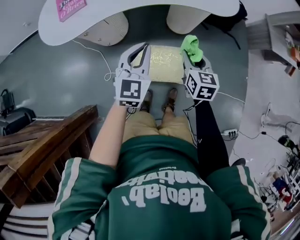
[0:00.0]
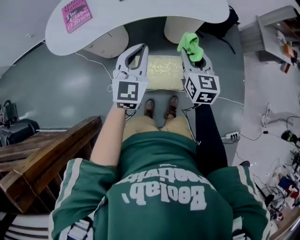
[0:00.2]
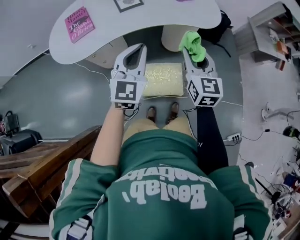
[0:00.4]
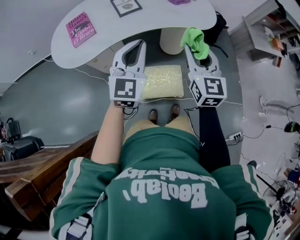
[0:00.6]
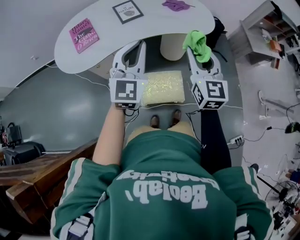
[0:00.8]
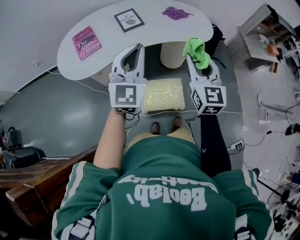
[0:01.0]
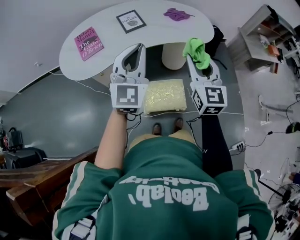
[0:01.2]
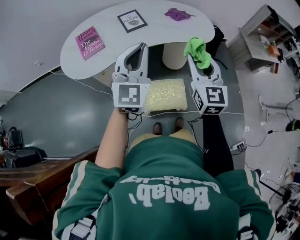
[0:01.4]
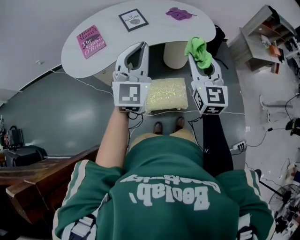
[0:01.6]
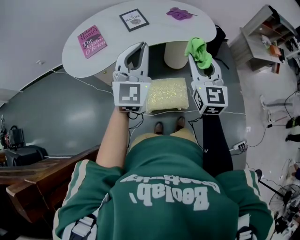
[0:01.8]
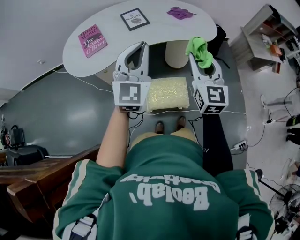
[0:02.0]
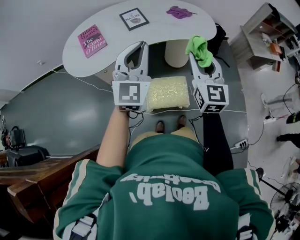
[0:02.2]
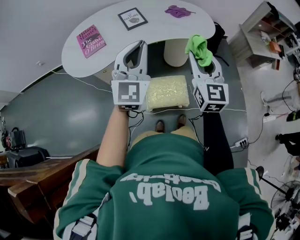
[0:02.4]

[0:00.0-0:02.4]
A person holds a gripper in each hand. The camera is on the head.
0:00.0 to 0:01.2: Both grippers move upward, about 25 cm. The right gripper changes its angle by approximately 30 degrees; the left gripper swivels roughly 20 degrees.
0:01.2 to 0:02.4: The grippers stay close to where they were, moving slightly.

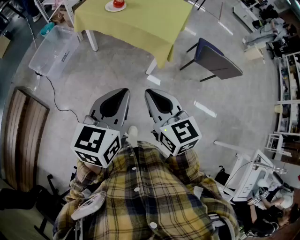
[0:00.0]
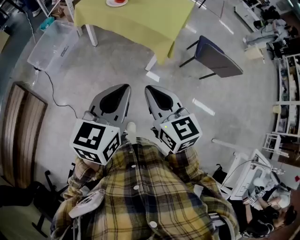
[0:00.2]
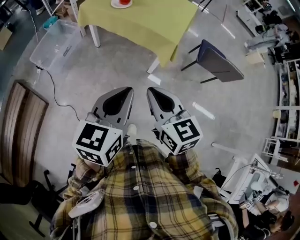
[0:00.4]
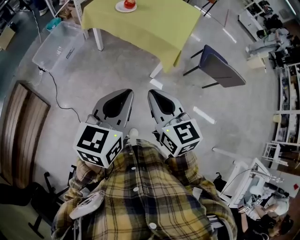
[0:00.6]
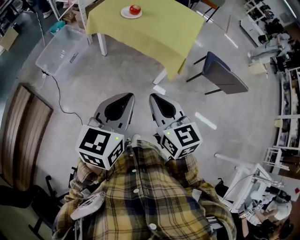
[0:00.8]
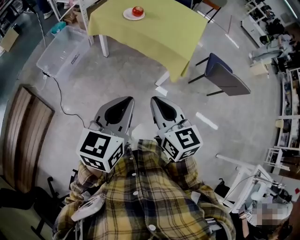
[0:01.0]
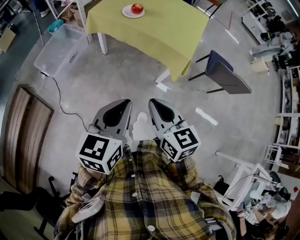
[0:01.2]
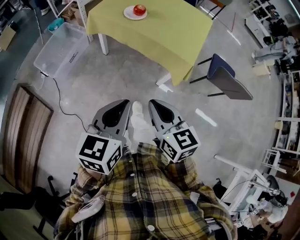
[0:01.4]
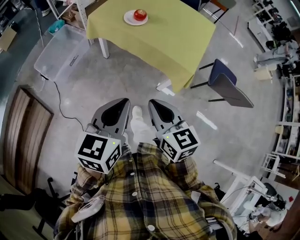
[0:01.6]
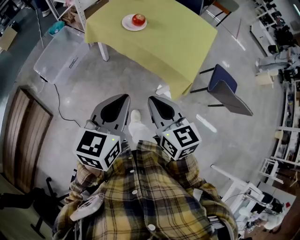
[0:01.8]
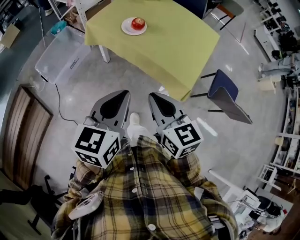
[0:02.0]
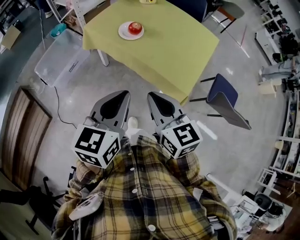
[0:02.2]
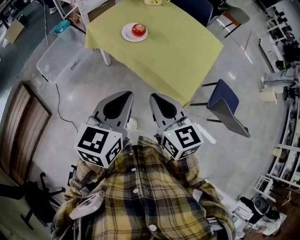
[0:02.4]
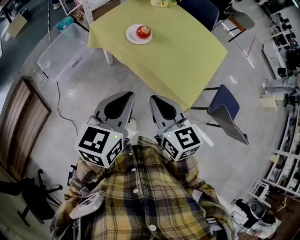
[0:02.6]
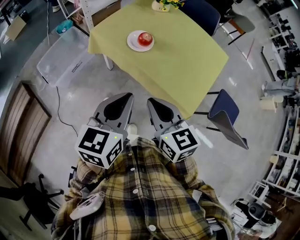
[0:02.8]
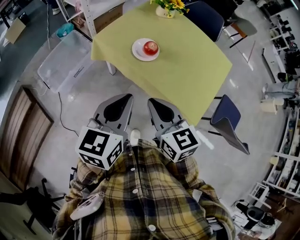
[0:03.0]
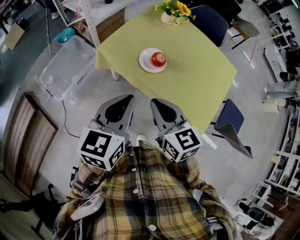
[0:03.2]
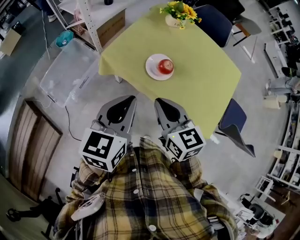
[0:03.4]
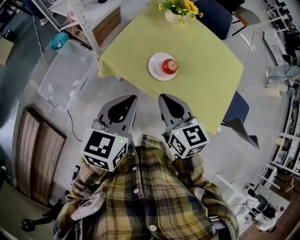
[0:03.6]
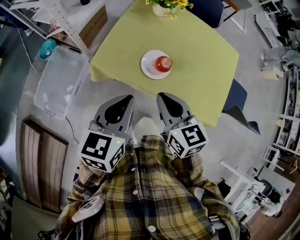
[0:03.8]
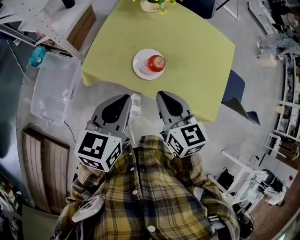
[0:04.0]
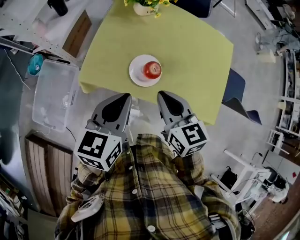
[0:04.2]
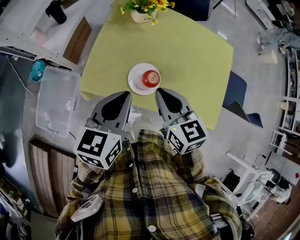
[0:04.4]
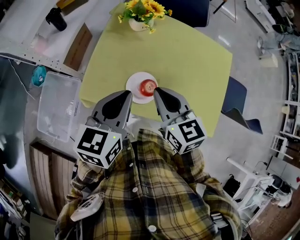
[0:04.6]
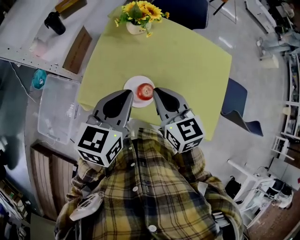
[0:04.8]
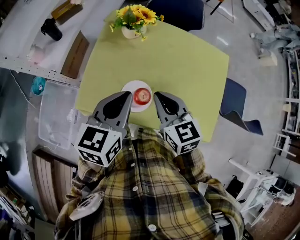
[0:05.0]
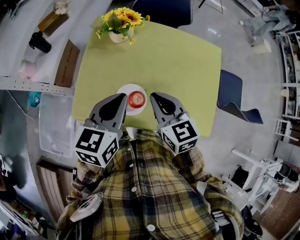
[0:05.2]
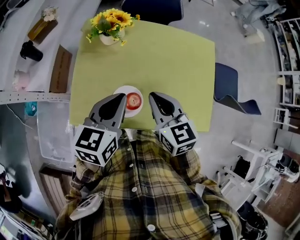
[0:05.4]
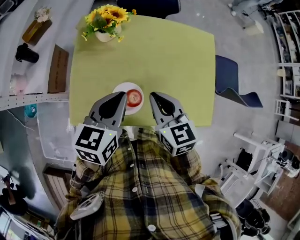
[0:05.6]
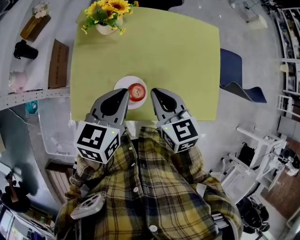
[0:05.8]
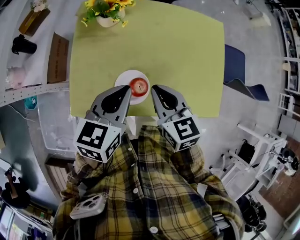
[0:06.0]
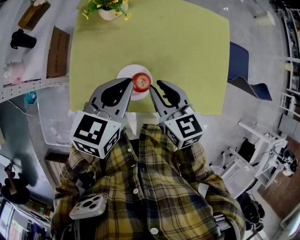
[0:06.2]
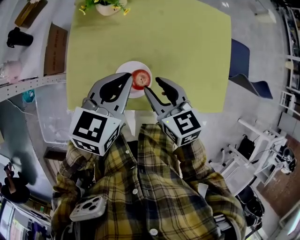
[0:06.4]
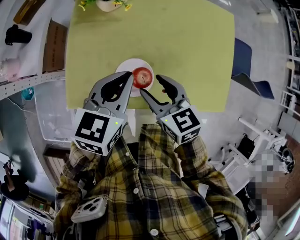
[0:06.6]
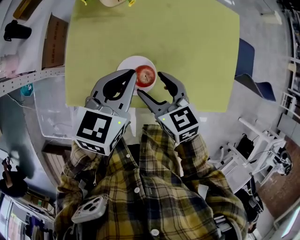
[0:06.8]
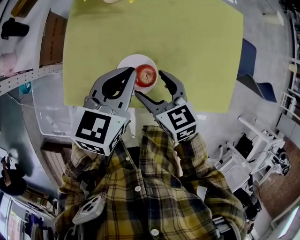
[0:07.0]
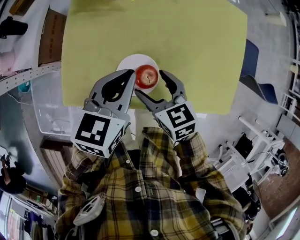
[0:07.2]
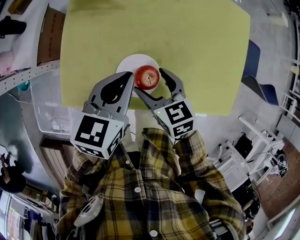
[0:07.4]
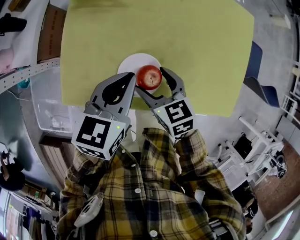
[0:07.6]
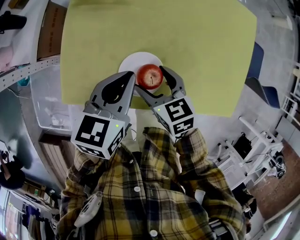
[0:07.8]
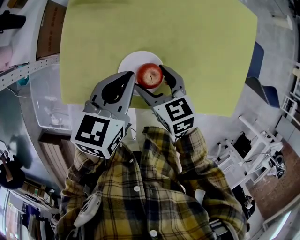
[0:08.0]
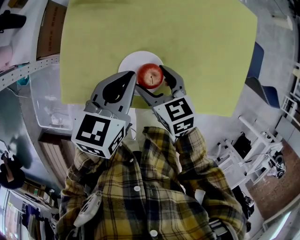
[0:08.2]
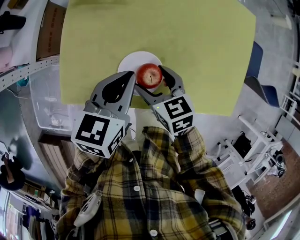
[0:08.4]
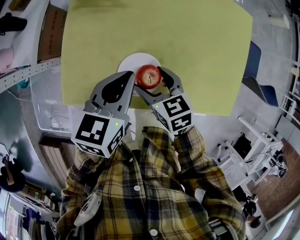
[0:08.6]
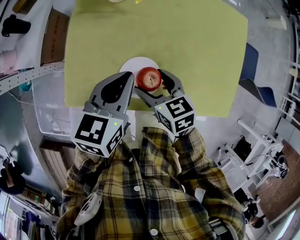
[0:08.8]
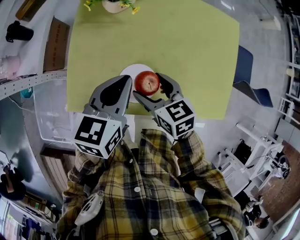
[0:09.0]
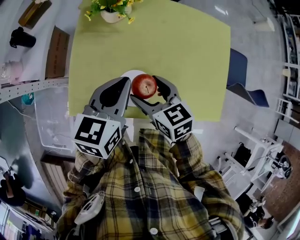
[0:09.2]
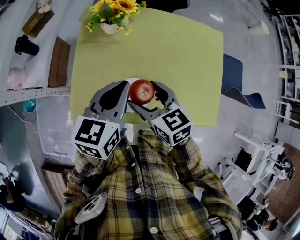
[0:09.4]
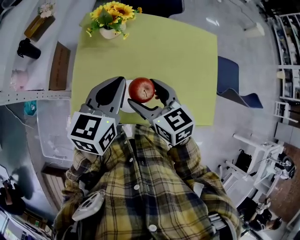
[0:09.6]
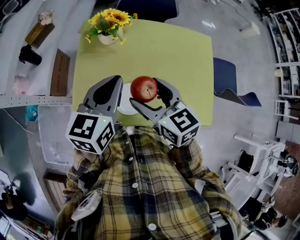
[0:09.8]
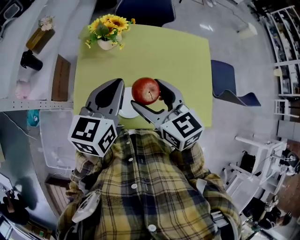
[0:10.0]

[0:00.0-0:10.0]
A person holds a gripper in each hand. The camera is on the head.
0:00.0 to 0:01.4: The left gripper travels forward and to the left by roughly 15 cm. Meanwhile the right gripper moves forward, to the left and downward, approximately 15 cm.
0:01.4 to 0:02.8: The grippers both shift forward by roughly 25 cm.
0:02.8 to 0:04.2: The right gripper moves forward, roughly 25 cm, and swivels approximately 30 degrees. Meanwhile the left gripper moves forward and to the left, approximately 30 cm, and swivels roughly 20 degrees.
0:04.2 to 0:05.8: The right gripper is displaced forward by roughly 10 cm. Meanwhile the left gripper heads forward and to the right, covering approximately 15 cm.
0:05.8 to 0:07.2: The left gripper heads downward, covering roughly 10 cm, while the right gripper is displaced downward by about 15 cm, and opens its fingers.
0:07.2 to 0:08.6: The grippers stay close to where they were, moving slightly.
0:08.6 to 0:10.0: Both grippers move upward, some 20 cm. The right gripper swivels roughly 30 degrees.

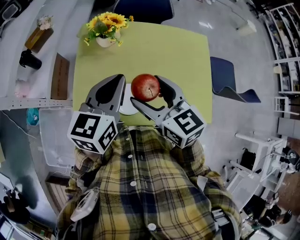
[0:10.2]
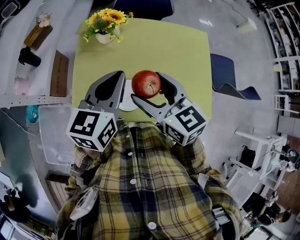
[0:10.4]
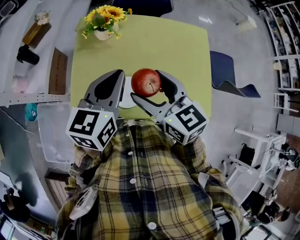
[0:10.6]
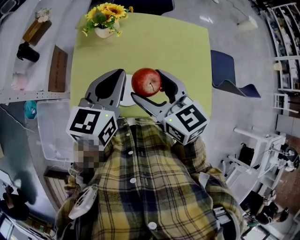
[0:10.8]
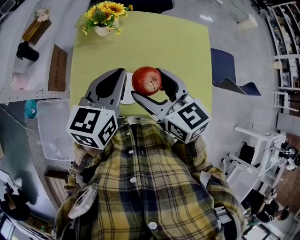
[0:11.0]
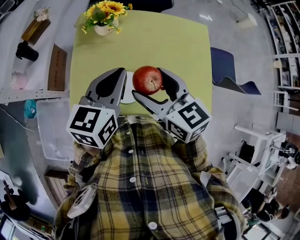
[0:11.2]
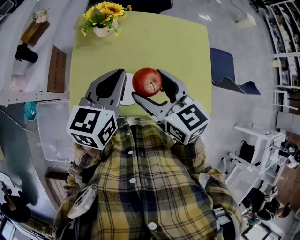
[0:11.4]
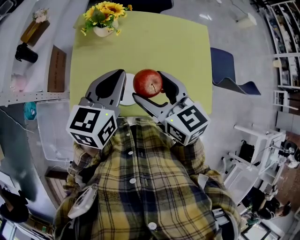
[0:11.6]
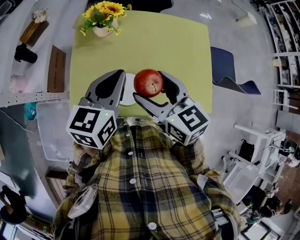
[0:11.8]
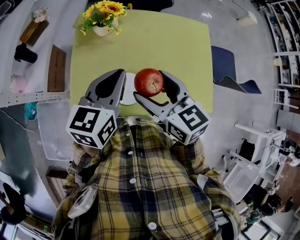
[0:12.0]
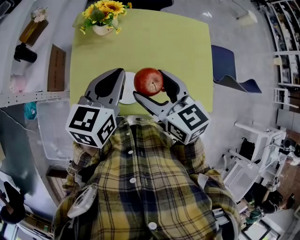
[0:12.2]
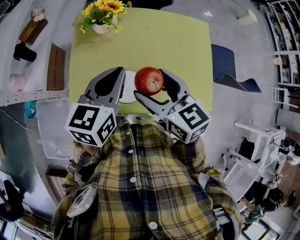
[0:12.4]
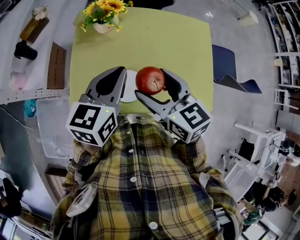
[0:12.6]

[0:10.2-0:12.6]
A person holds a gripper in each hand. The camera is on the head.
0:10.2 to 0:11.4: There are only small adjustments of the grippers.
0:11.4 to 0:12.6: The two grippers keep their place.

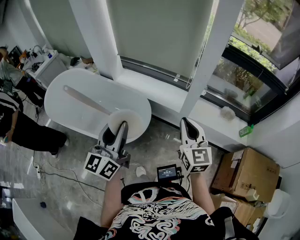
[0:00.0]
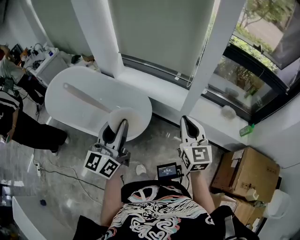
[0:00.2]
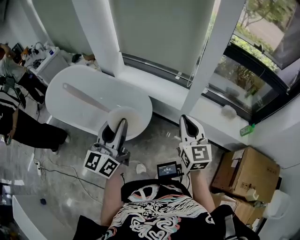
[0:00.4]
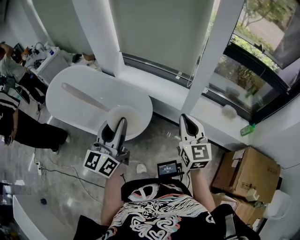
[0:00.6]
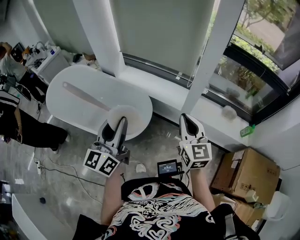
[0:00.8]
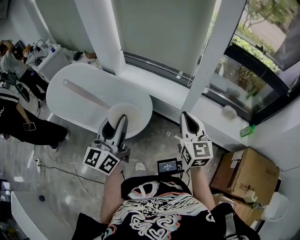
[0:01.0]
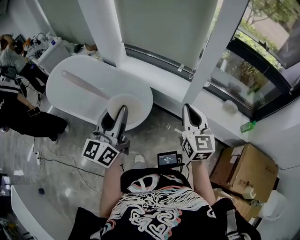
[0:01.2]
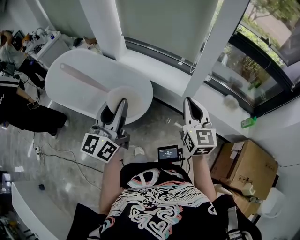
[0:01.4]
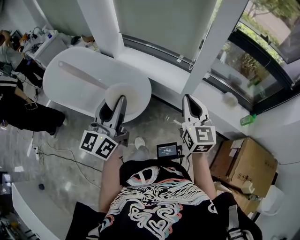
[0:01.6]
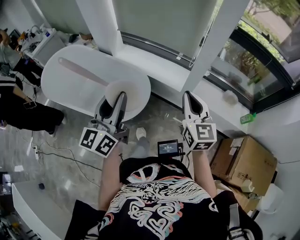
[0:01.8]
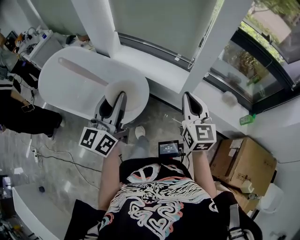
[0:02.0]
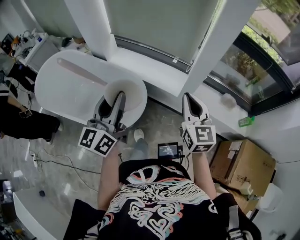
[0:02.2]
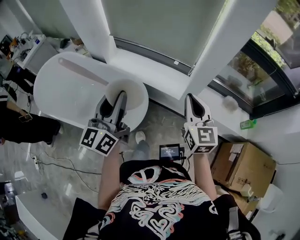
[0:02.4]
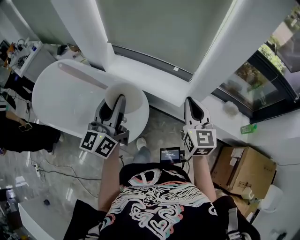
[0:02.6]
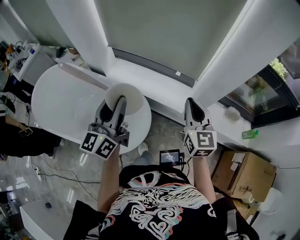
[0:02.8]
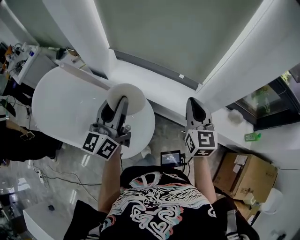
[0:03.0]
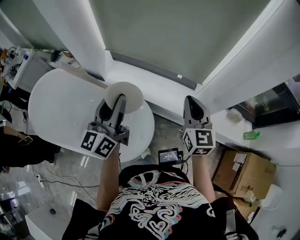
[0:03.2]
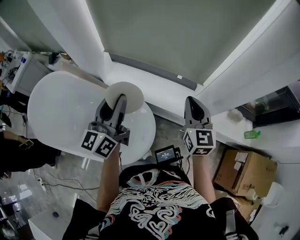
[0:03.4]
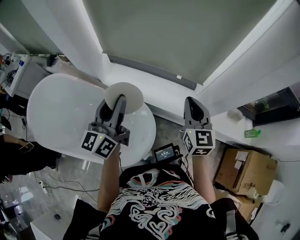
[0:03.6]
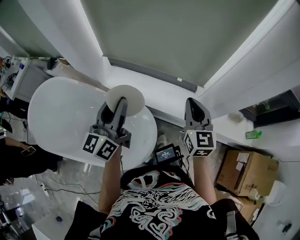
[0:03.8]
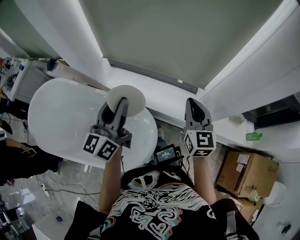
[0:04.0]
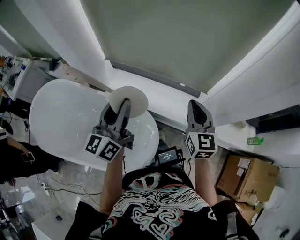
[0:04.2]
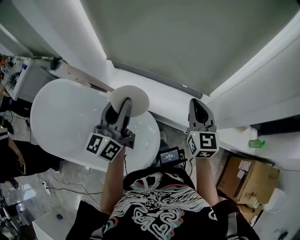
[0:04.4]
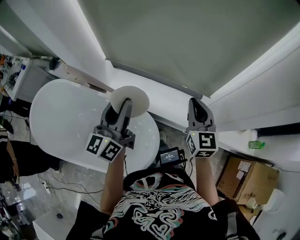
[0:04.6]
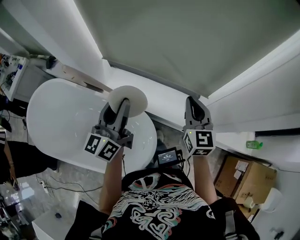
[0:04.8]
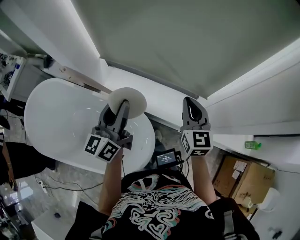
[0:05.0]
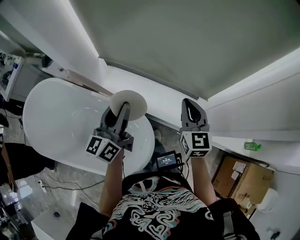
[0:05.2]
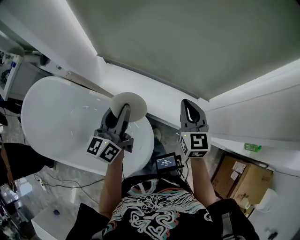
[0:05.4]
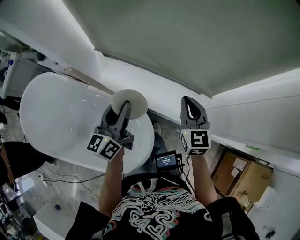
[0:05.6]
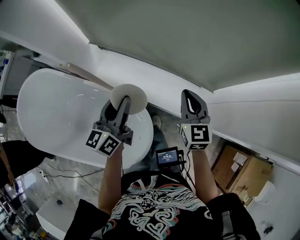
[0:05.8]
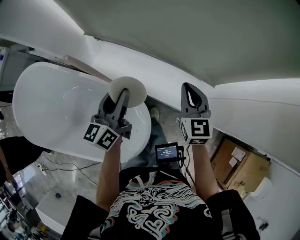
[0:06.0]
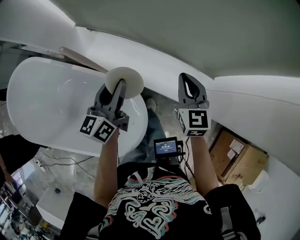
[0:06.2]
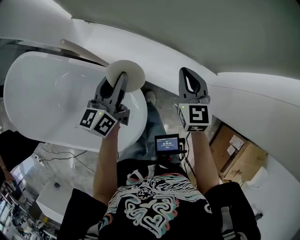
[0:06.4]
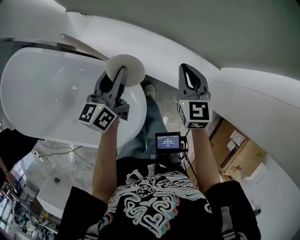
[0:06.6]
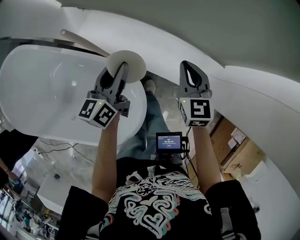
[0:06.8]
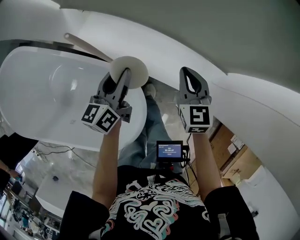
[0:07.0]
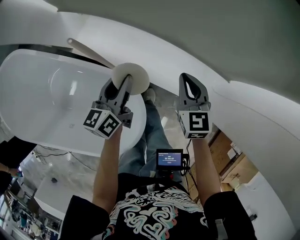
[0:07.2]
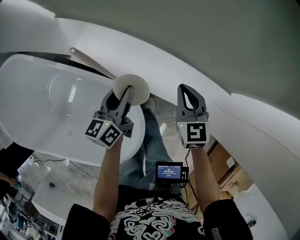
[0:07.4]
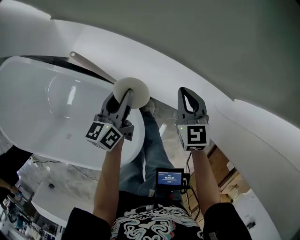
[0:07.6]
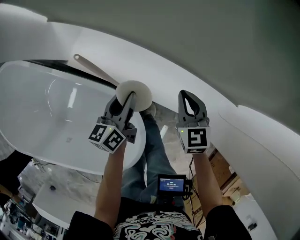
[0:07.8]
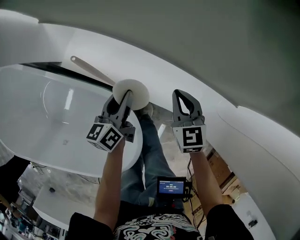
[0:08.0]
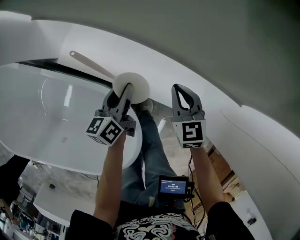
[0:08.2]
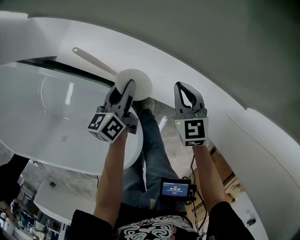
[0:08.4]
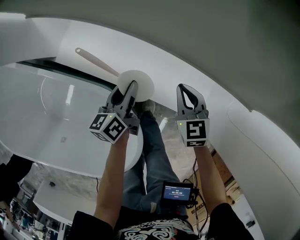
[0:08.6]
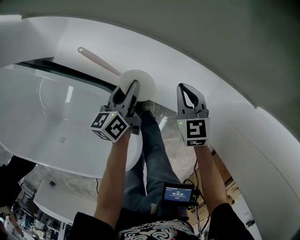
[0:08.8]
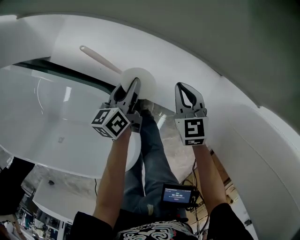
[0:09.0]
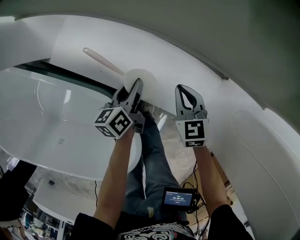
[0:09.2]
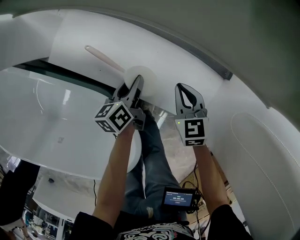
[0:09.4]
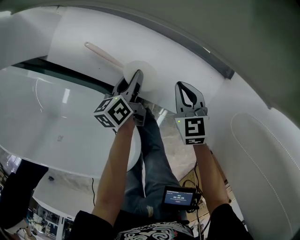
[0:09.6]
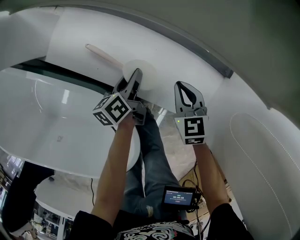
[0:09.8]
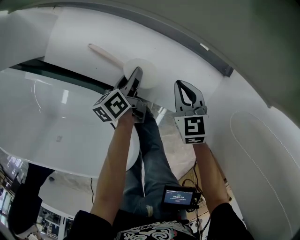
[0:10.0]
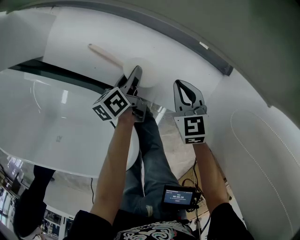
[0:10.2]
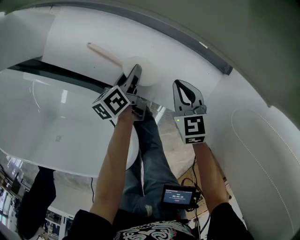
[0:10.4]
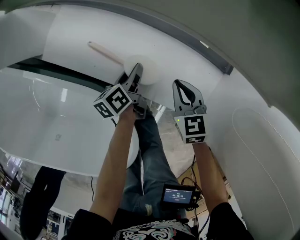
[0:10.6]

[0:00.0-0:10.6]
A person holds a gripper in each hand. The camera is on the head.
0:00.0 to 0:01.6: The grippers move only a little.
0:01.6 to 0:03.0: The two grippers go approximately 30 cm forward.
0:03.0 to 0:04.6: Both grippers move forward, some 15 cm.
0:04.6 to 0:06.0: Both grippers move downward and forward, approximately 20 cm.
0:06.0 to 0:07.6: Both grippers move downward, about 20 cm.
0:07.6 to 0:09.0: Both grippers move downward, approximately 15 cm.
0:09.0 to 0:10.6: The left gripper heads downward, covering approximately 10 cm.
